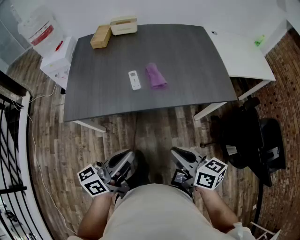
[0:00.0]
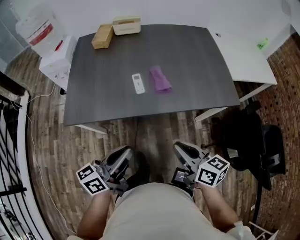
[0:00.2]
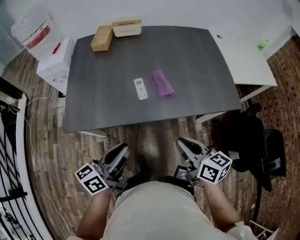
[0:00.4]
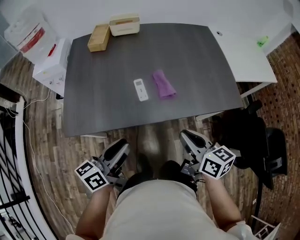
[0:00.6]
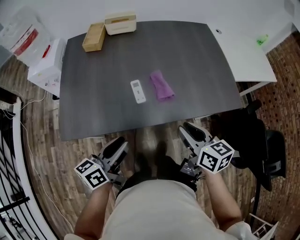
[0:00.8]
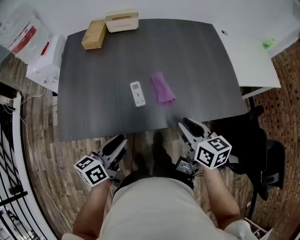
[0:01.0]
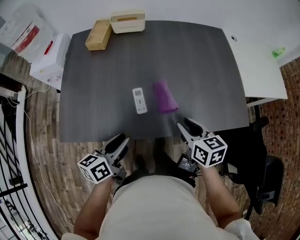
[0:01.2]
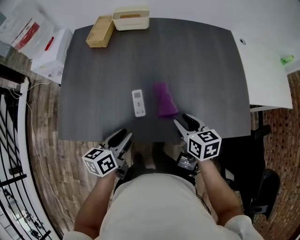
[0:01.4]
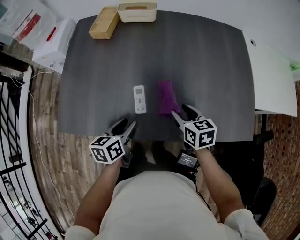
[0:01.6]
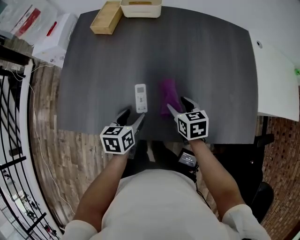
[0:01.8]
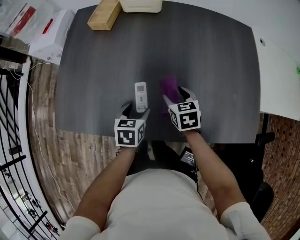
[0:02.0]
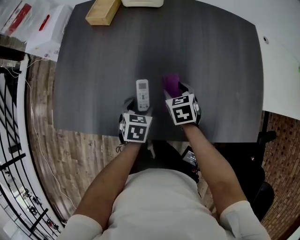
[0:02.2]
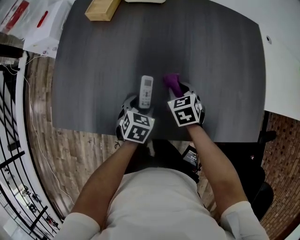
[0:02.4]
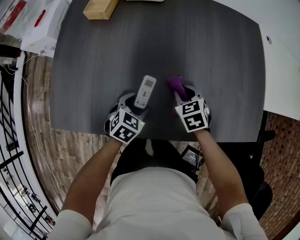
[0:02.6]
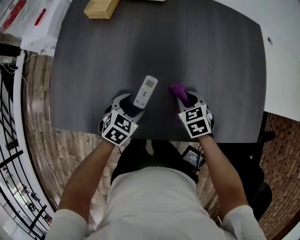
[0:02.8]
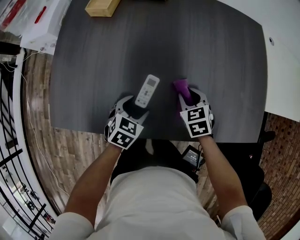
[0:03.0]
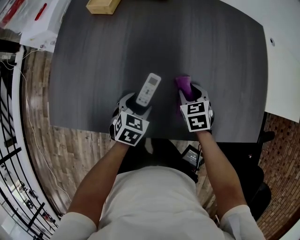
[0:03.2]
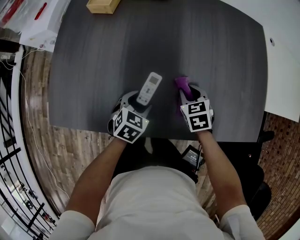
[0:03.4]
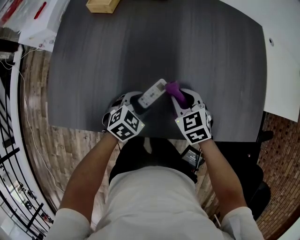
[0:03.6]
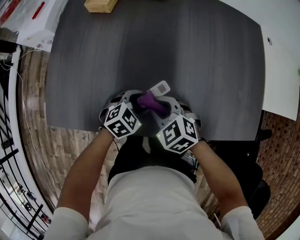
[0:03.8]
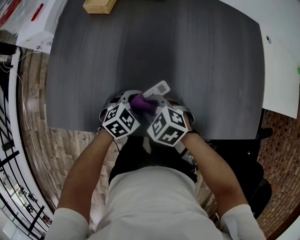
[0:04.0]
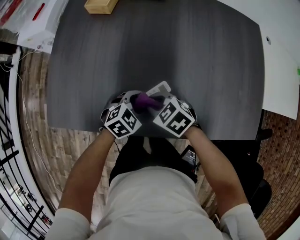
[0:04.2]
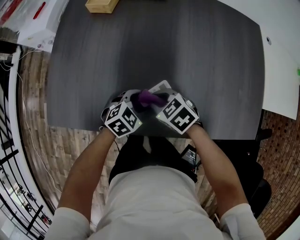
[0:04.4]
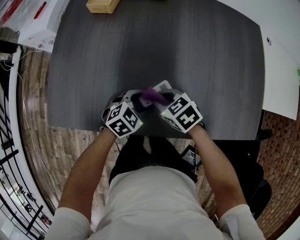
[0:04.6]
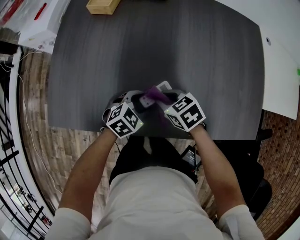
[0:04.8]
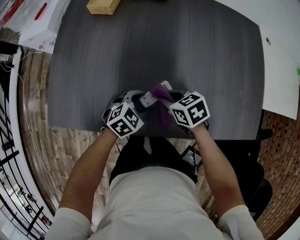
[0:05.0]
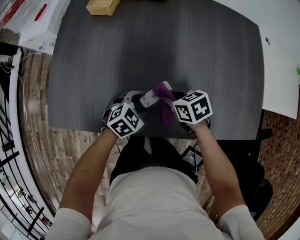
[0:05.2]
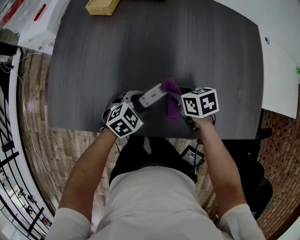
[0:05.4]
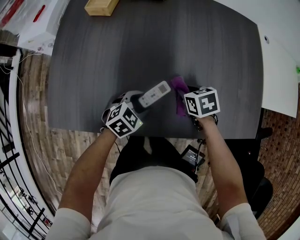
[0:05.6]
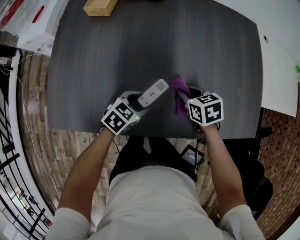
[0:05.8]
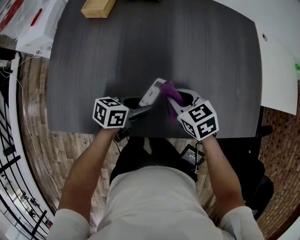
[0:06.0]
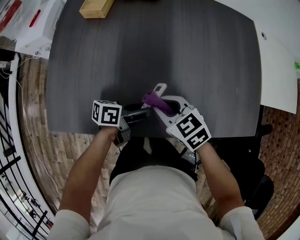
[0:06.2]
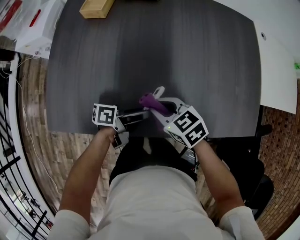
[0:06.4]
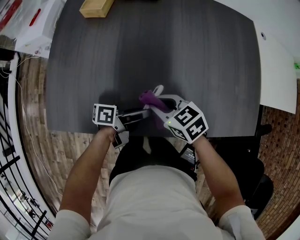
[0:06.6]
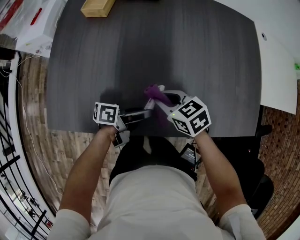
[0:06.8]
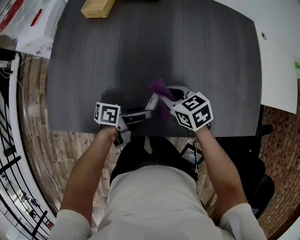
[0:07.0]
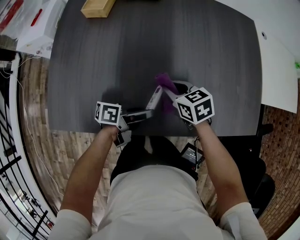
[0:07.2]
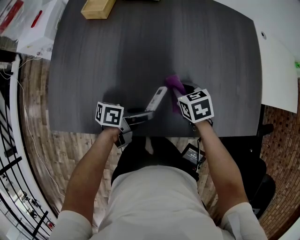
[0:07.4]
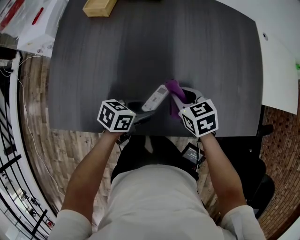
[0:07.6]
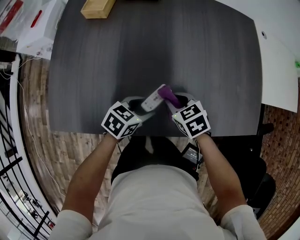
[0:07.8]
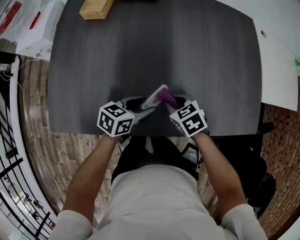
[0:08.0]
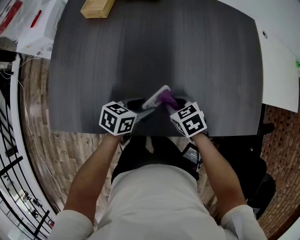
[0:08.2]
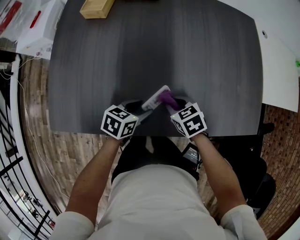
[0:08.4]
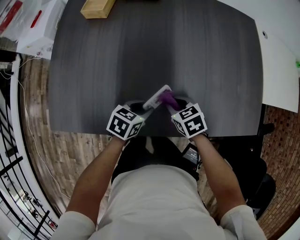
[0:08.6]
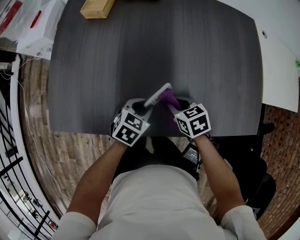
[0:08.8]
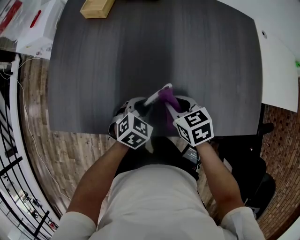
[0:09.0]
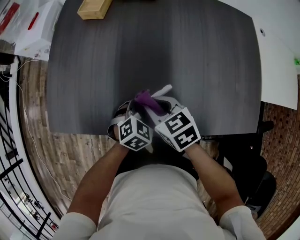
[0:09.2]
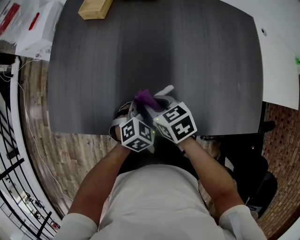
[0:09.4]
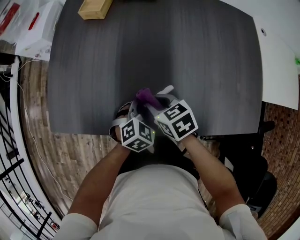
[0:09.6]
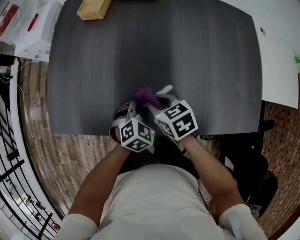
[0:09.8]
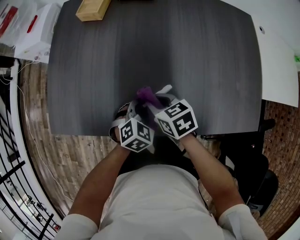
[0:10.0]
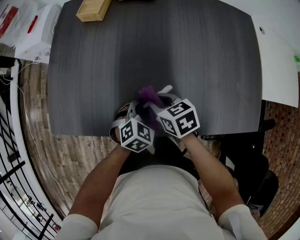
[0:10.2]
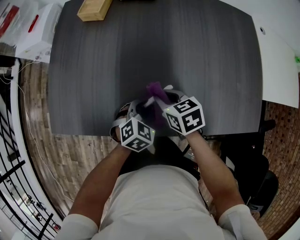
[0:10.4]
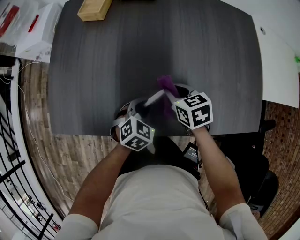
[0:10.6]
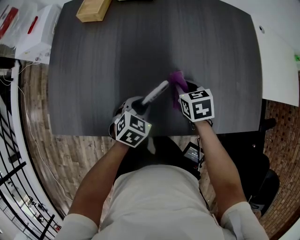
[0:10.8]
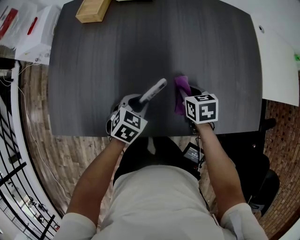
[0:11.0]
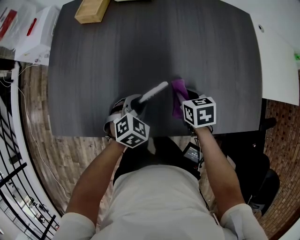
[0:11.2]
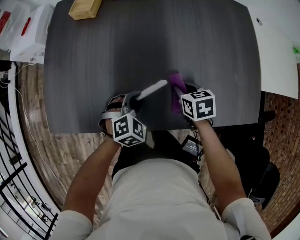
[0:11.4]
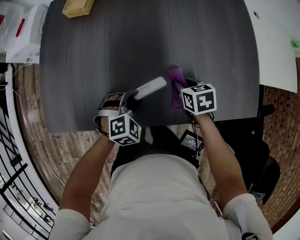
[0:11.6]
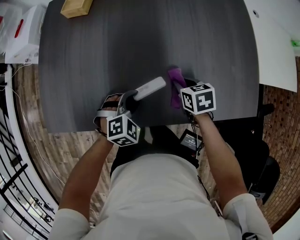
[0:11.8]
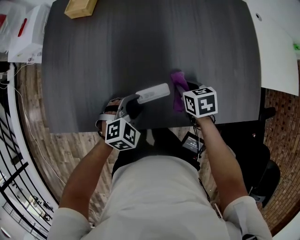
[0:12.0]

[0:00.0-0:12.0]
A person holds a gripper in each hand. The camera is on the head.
0:00.0 to 0:01.6: The right gripper goes approximately 35 cm forward, swivels approximately 30 degrees, and opens. Meanwhile the left gripper is displaced forward and downward by approximately 35 cm, points its fingers roughly 40 degrees further downward, and opens its fingers.
0:01.6 to 0:03.0: The right gripper is displaced downward and forward by about 10 cm, and rotates roughly 30 degrees. Meanwhile the left gripper shifts about 10 cm downward, twists approximately 40 degrees clockwise, seen from behind, and opens.
0:03.0 to 0:04.4: The left gripper changes its angle by about 20 degrees. The right gripper moves about 15 cm, and turns by approximately 30 degrees.
0:04.4 to 0:06.0: The right gripper shifts by roughly 10 cm, and turns by some 20 degrees, while the left gripper twists some 50 degrees counterclockwise, seen from behind.
0:07.6 to 0:09.0: The left gripper changes its angle by roughly 50 degrees, and closes its fingers.
0:10.4 to 0:12.0: The right gripper is displaced to the right by about 10 cm.

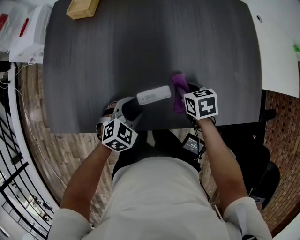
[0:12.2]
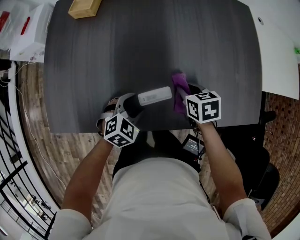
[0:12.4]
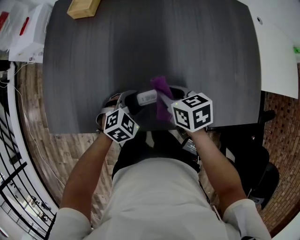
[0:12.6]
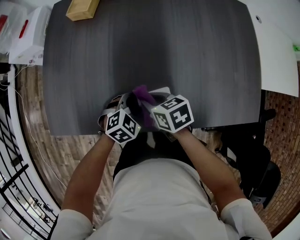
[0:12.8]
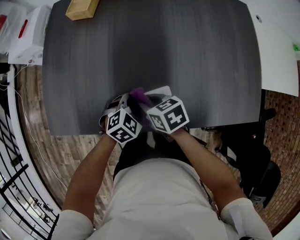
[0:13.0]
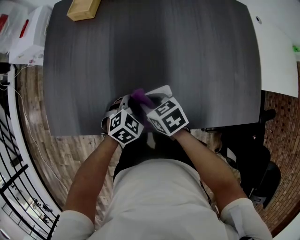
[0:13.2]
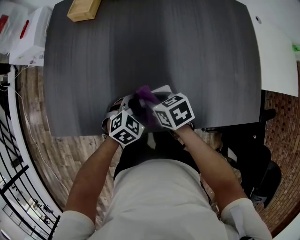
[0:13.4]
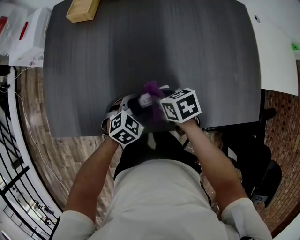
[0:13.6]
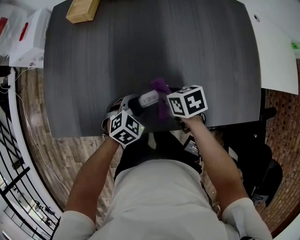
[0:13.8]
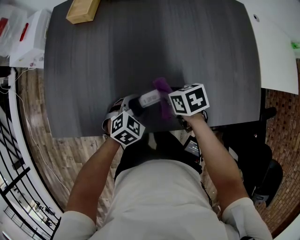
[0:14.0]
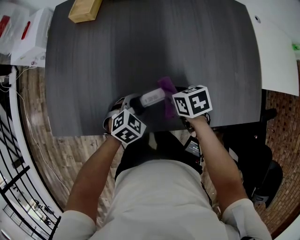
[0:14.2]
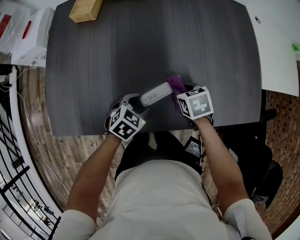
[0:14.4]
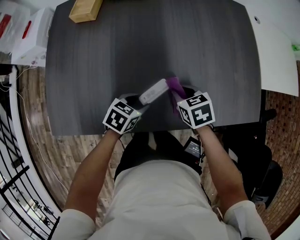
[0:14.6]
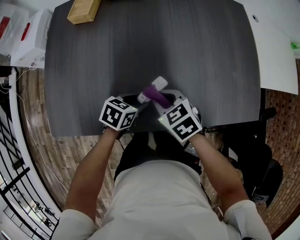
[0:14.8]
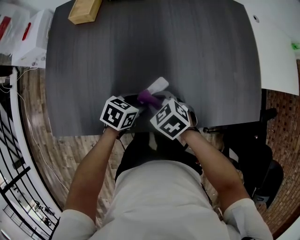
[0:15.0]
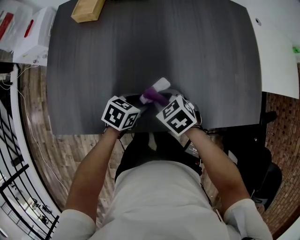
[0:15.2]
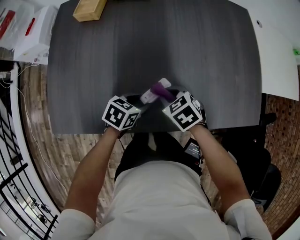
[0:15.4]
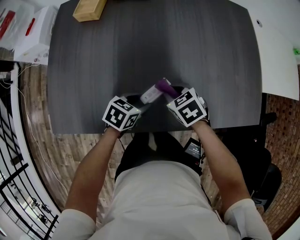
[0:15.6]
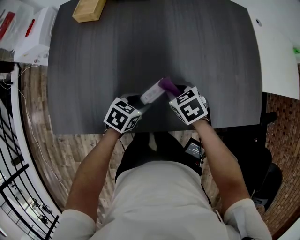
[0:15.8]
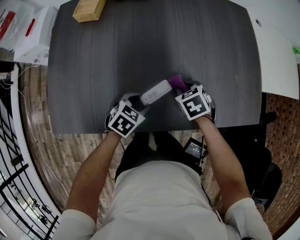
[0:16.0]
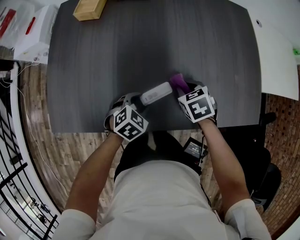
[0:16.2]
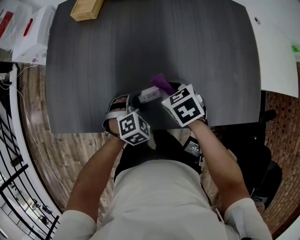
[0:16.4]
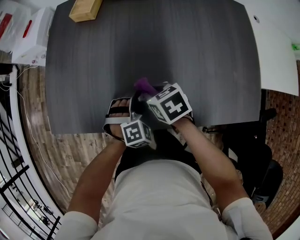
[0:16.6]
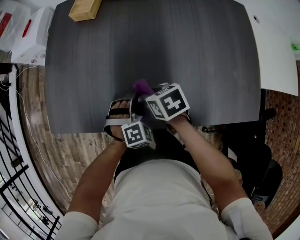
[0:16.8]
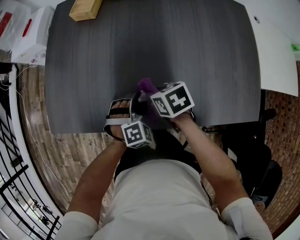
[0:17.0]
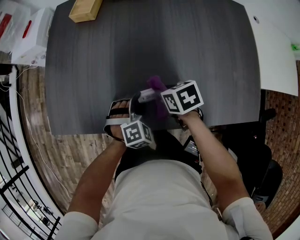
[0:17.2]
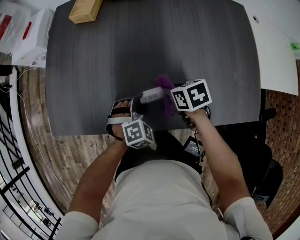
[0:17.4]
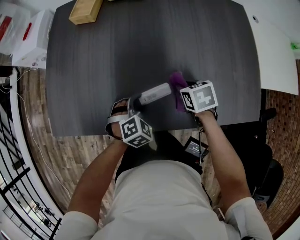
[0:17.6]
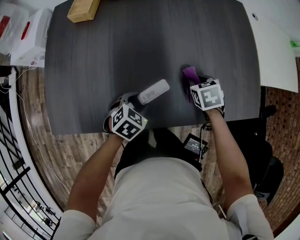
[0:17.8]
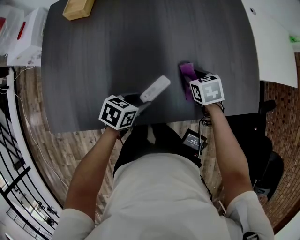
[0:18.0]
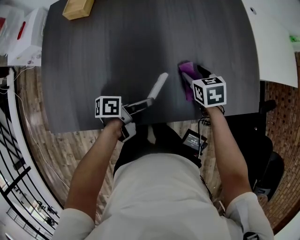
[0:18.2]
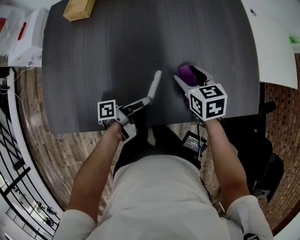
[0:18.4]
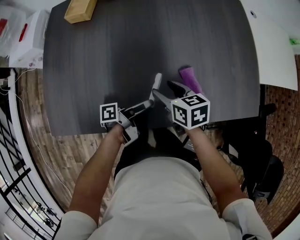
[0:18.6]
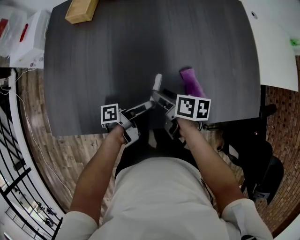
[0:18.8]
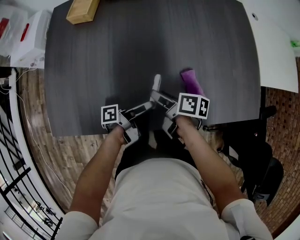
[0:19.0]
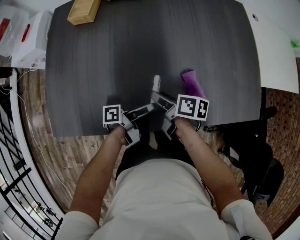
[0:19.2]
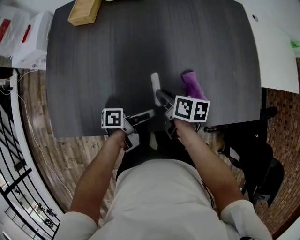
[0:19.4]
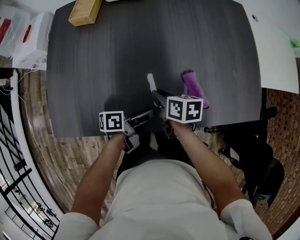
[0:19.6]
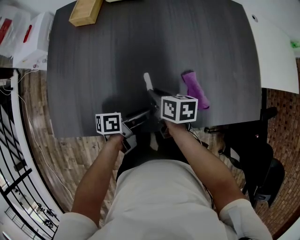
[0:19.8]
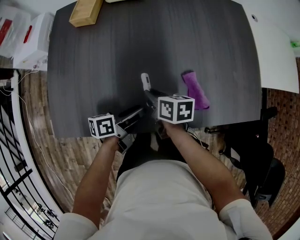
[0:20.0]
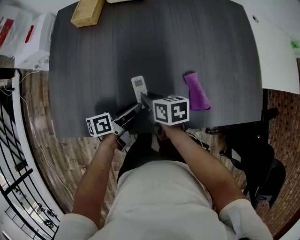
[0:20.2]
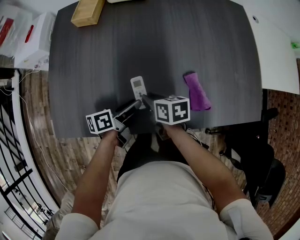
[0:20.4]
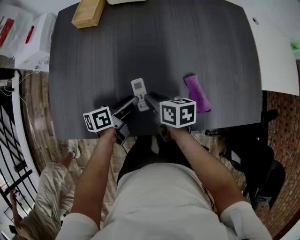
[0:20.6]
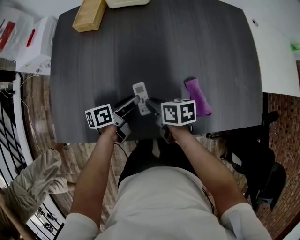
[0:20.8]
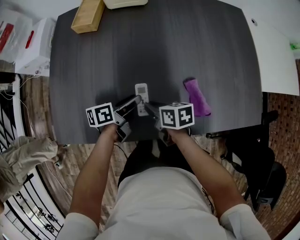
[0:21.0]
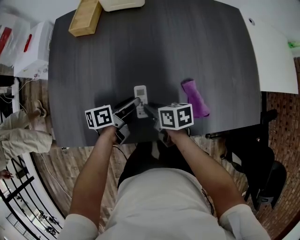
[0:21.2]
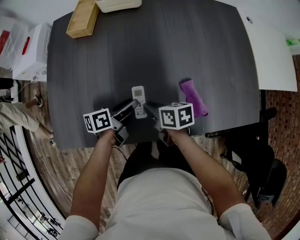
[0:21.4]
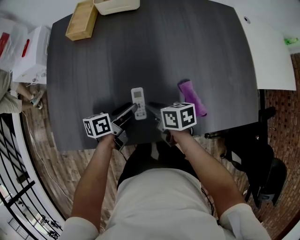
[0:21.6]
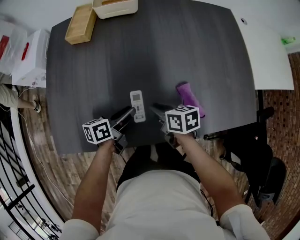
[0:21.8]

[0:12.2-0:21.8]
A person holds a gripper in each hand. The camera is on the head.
0:12.2 to 0:13.8: The right gripper shifts some 10 cm to the left.
0:13.8 to 0:15.4: The right gripper turns by approximately 30 degrees, while the left gripper swivels about 30 degrees.
0:15.4 to 0:17.0: The right gripper swivels roughly 20 degrees. The left gripper twists some 50 degrees clockwise, seen from behind.
0:17.0 to 0:18.6: The left gripper rolls counterclockwise, seen from behind, by about 130 degrees. The right gripper turns by some 20 degrees, and opens its fingers.
0:18.6 to 0:20.2: The two grippers go roughly 10 cm to the left. The left gripper rotates about 30 degrees; the right gripper closes up.
0:20.2 to 0:21.8: The grippers stay close to where they were, moving slightly.

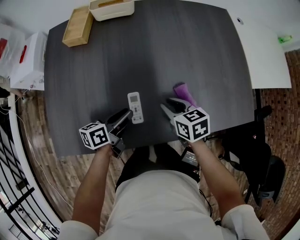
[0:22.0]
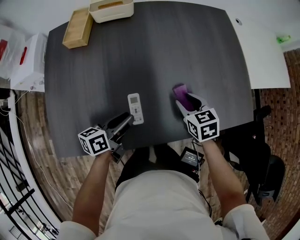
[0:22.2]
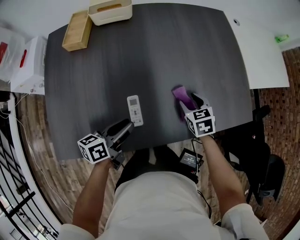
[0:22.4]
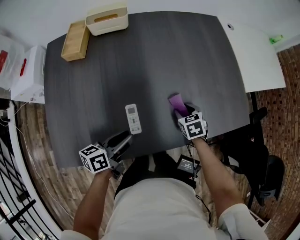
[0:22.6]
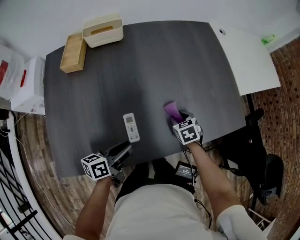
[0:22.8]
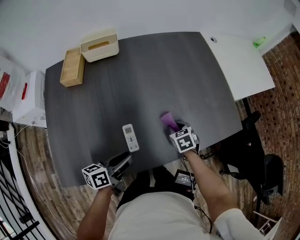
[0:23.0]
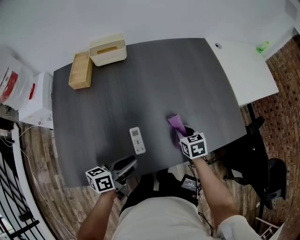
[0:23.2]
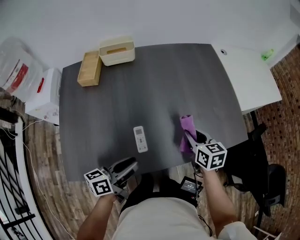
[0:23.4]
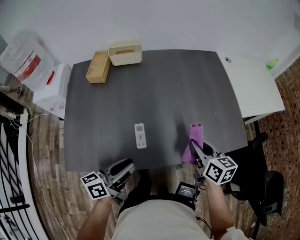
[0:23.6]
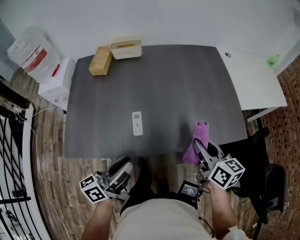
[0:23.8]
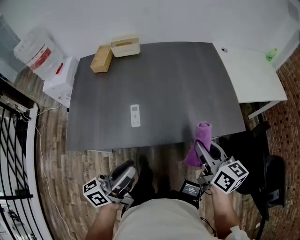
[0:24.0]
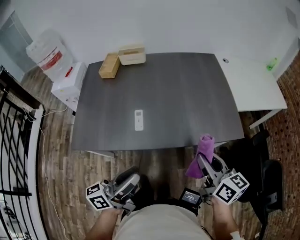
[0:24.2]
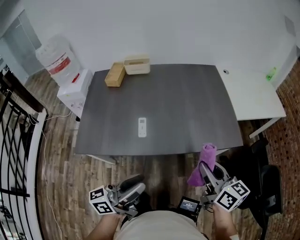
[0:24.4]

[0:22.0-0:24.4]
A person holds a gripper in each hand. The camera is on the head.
0:22.0 to 0:23.2: The right gripper is displaced to the right by some 10 cm, swivels about 20 degrees, and opens, then closes once more; the left gripper travels upward and backward by approximately 10 cm.
0:23.2 to 0:24.4: The right gripper moves upward, backward and to the right, about 35 cm, and tilts its fingers approximately 40 degrees upward. The left gripper heads backward, upward and to the right, covering approximately 30 cm, and changes its angle by some 30 degrees.
